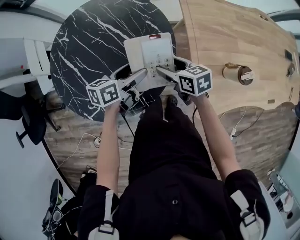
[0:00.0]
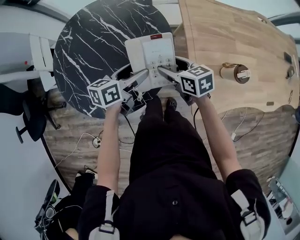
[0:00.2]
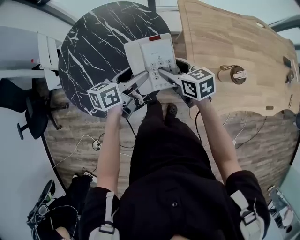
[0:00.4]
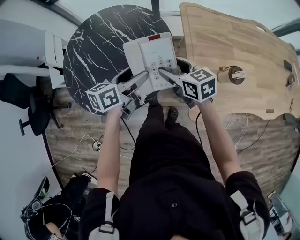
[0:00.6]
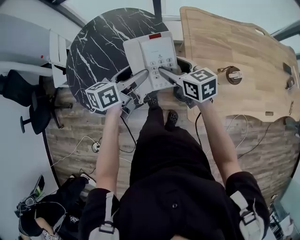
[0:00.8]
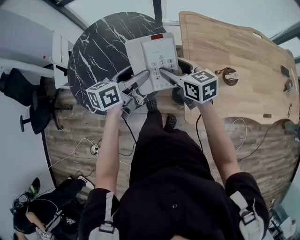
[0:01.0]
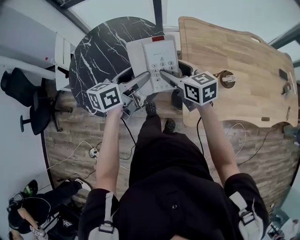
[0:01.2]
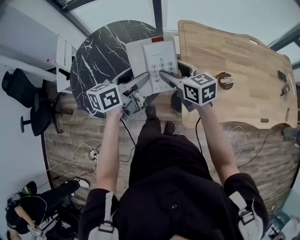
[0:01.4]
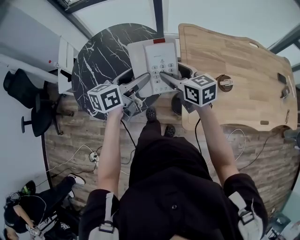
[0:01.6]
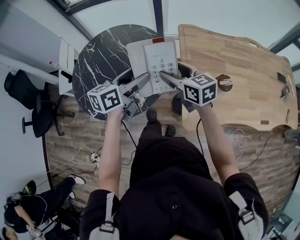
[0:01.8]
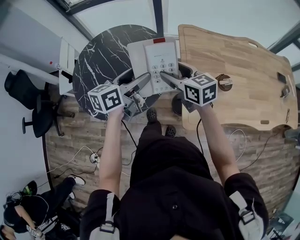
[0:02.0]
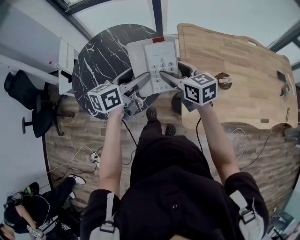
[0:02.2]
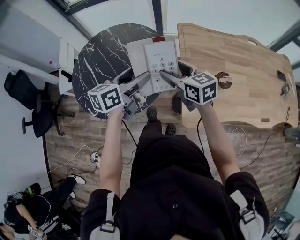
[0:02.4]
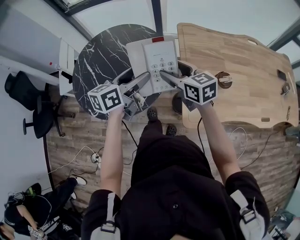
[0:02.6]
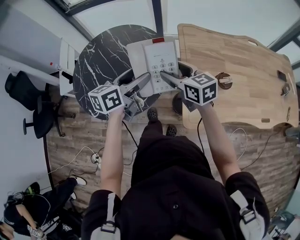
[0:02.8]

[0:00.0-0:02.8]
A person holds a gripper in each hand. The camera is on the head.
0:00.0 to 0:01.4: The left gripper shifts approximately 20 cm upward and backward, and swivels roughly 20 degrees. Meanwhile the right gripper goes about 15 cm upward, and rotates approximately 20 degrees.
0:01.4 to 0:02.8: The grippers stay close to where they were, moving slightly.

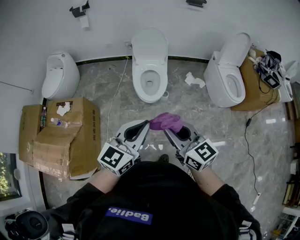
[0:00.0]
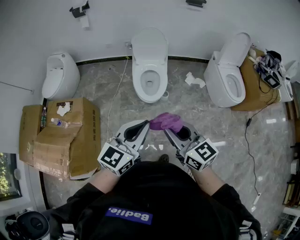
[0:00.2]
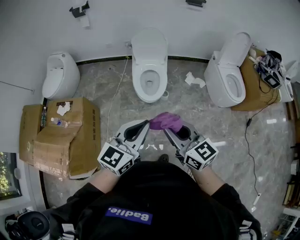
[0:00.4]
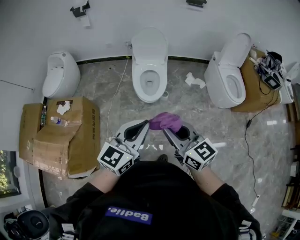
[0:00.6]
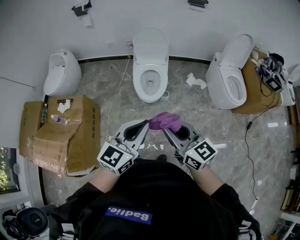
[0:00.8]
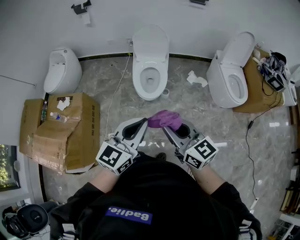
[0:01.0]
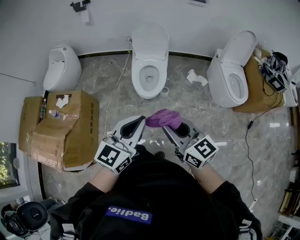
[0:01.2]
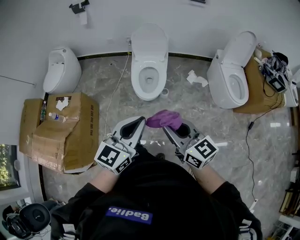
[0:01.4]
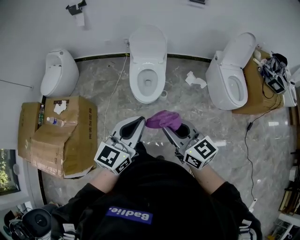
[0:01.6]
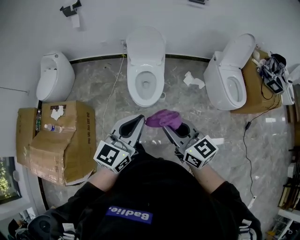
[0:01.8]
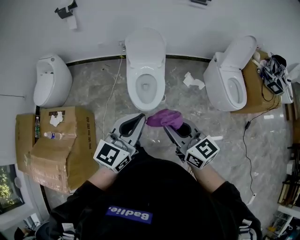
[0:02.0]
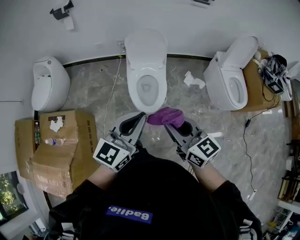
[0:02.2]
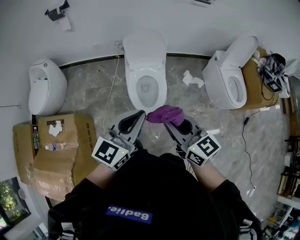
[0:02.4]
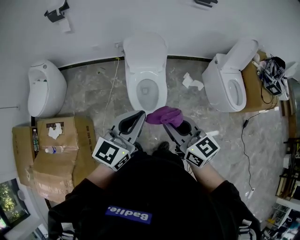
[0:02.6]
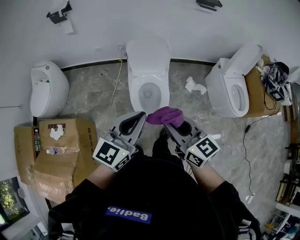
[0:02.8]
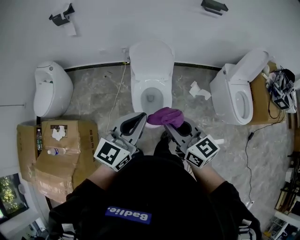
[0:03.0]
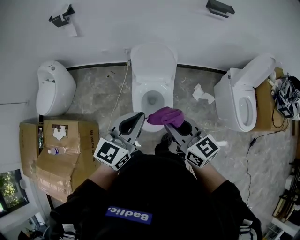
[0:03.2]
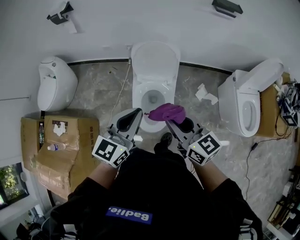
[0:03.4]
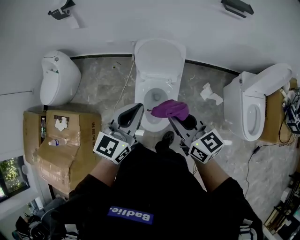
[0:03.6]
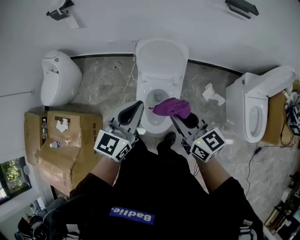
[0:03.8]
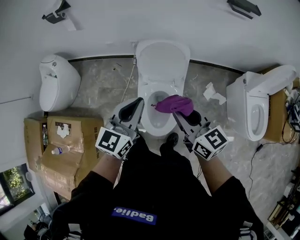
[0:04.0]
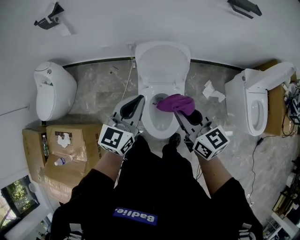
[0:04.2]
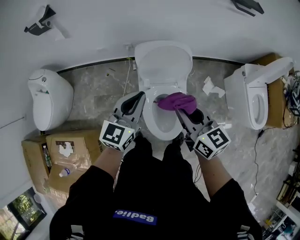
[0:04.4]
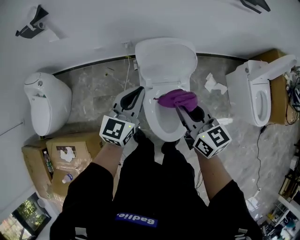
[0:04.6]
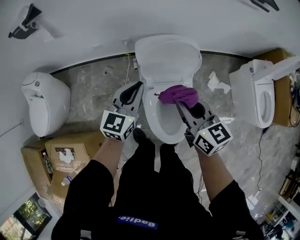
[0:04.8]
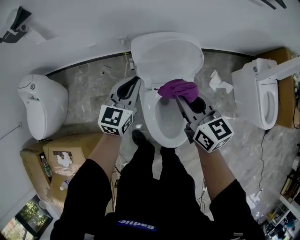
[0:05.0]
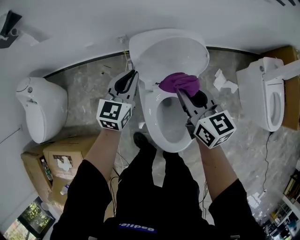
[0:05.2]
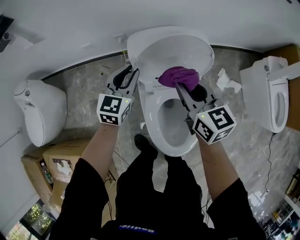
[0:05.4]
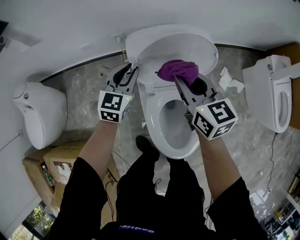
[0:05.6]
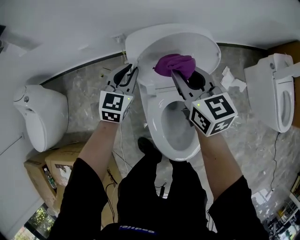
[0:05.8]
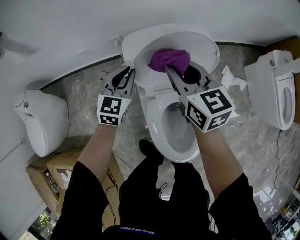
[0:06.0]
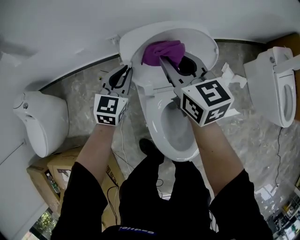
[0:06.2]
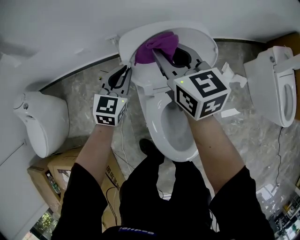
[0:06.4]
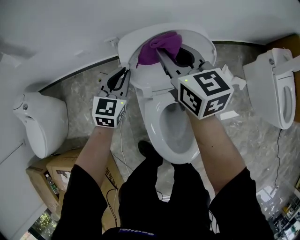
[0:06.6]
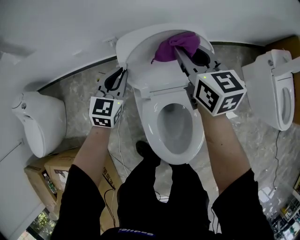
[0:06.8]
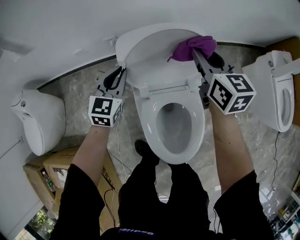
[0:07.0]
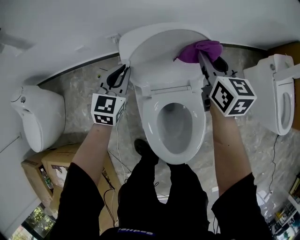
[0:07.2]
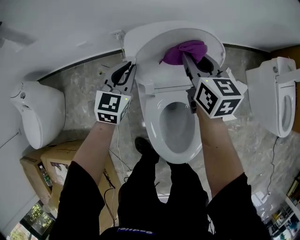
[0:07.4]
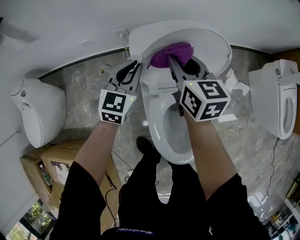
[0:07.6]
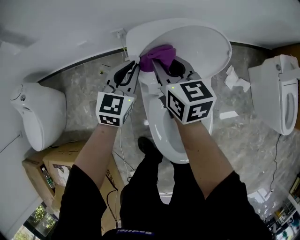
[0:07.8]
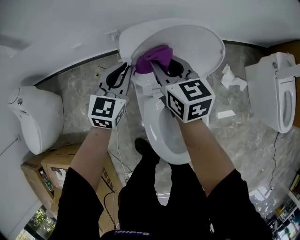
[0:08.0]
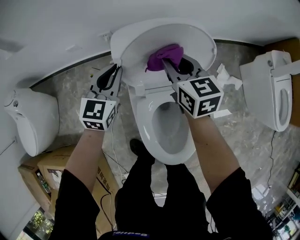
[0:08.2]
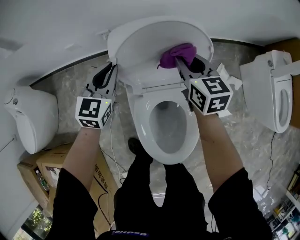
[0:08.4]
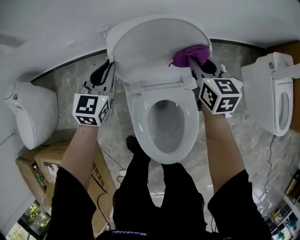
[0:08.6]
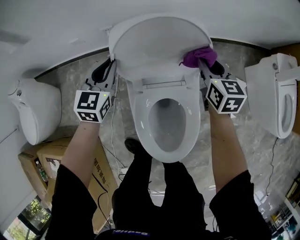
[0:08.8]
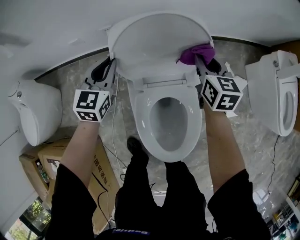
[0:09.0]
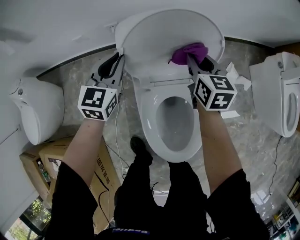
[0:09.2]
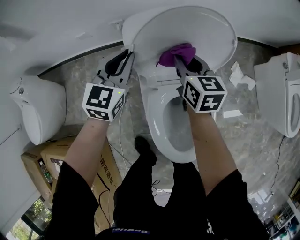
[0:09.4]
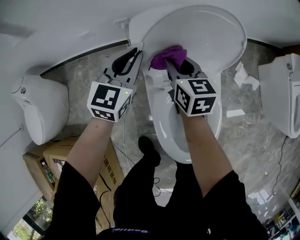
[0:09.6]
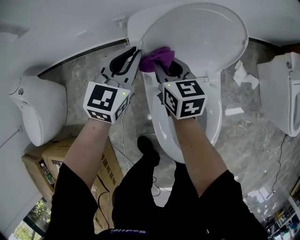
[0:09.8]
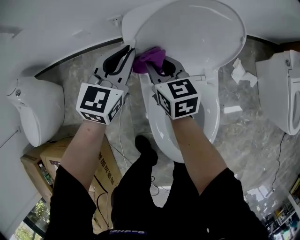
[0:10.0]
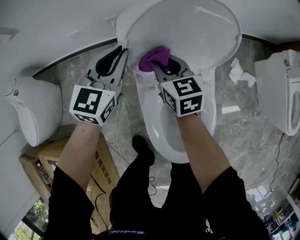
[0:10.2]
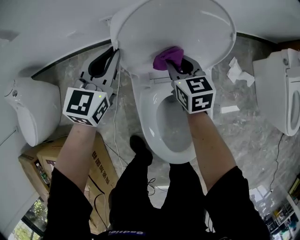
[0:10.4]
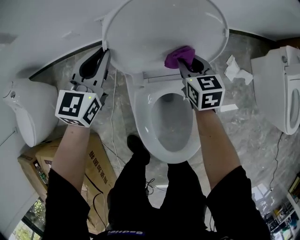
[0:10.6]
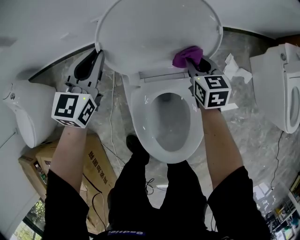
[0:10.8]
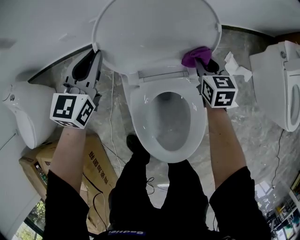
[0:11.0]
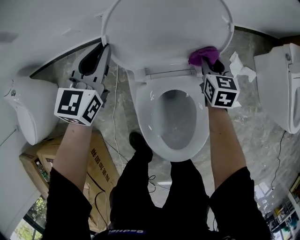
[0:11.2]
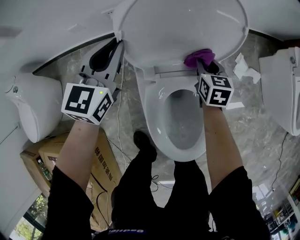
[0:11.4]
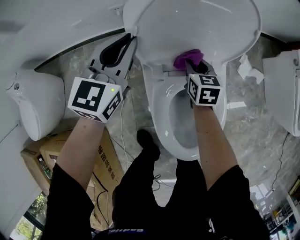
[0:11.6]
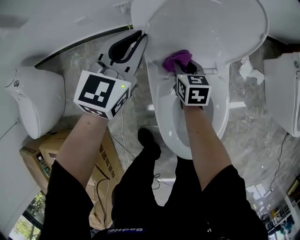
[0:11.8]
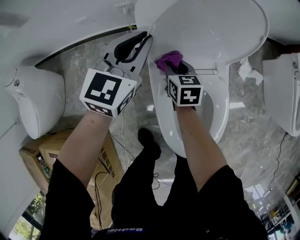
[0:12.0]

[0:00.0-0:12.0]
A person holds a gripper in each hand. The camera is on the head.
0:00.0 to 0:01.6: The right gripper shifts about 10 cm to the right and forward; the left gripper moves forward, approximately 5 cm.
0:01.6 to 0:03.0: Both grippers travel together forward, approximately 30 cm.
0:03.0 to 0:04.4: The right gripper moves forward, approximately 25 cm, while the left gripper travels forward and downward by about 30 cm.
0:04.4 to 0:06.0: The right gripper goes approximately 30 cm forward and downward. The left gripper heads downward and forward, covering some 35 cm, and swivels roughly 20 degrees.
0:06.0 to 0:07.6: The right gripper goes to the right and returns, approximately 10 cm each way.
0:07.6 to 0:09.0: The right gripper moves to the right and downward, roughly 20 cm.
0:09.0 to 0:10.4: The right gripper goes roughly 15 cm to the left and downward.
0:10.4 to 0:12.0: The right gripper travels to the left and downward by roughly 10 cm.

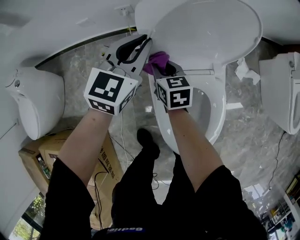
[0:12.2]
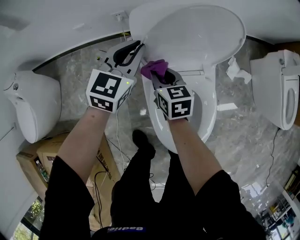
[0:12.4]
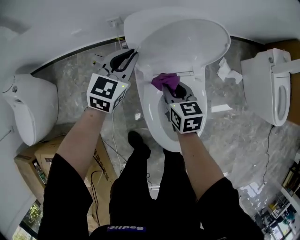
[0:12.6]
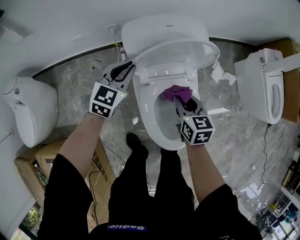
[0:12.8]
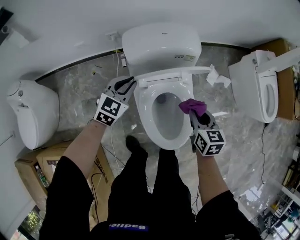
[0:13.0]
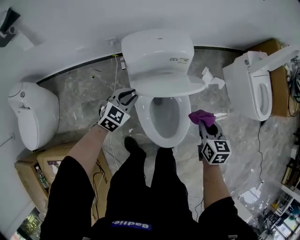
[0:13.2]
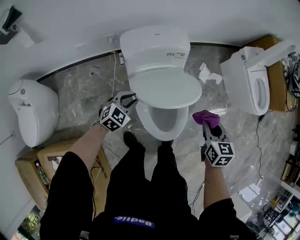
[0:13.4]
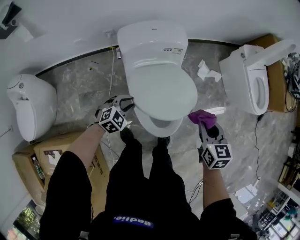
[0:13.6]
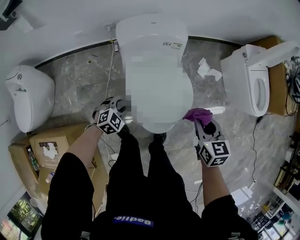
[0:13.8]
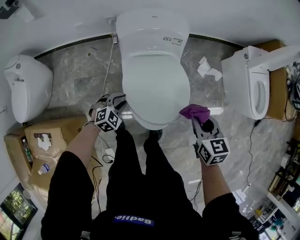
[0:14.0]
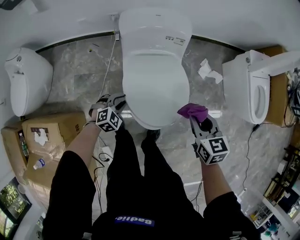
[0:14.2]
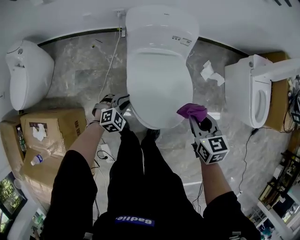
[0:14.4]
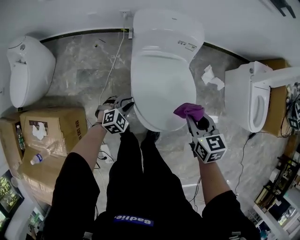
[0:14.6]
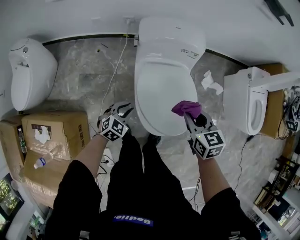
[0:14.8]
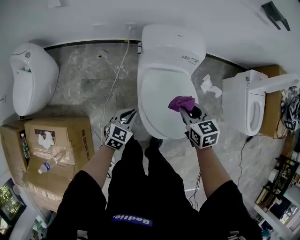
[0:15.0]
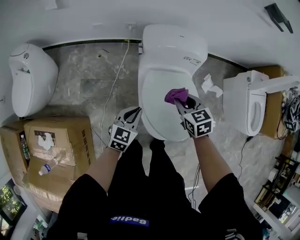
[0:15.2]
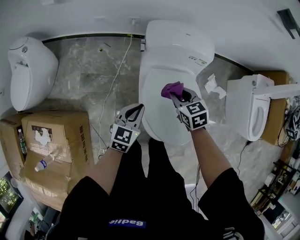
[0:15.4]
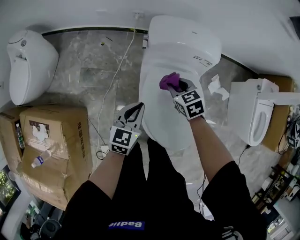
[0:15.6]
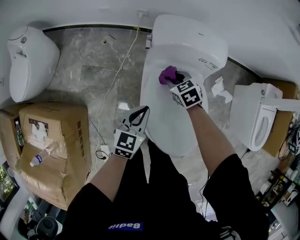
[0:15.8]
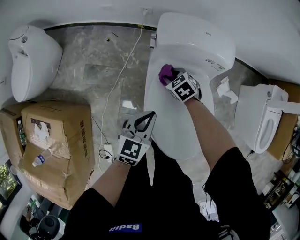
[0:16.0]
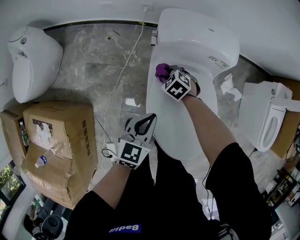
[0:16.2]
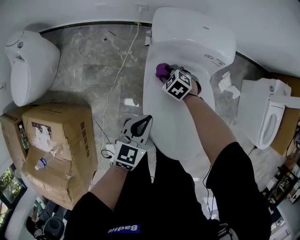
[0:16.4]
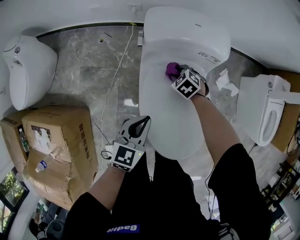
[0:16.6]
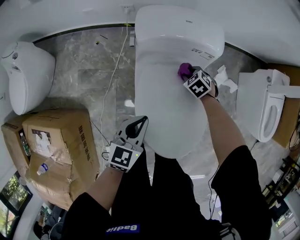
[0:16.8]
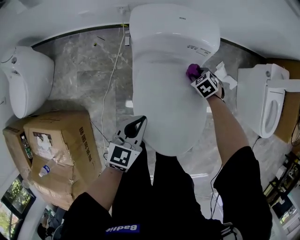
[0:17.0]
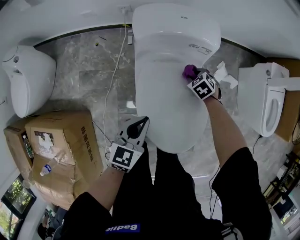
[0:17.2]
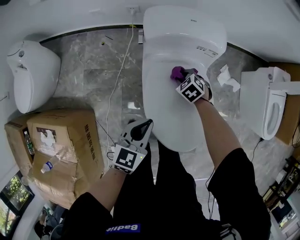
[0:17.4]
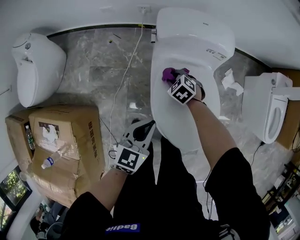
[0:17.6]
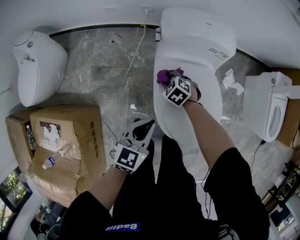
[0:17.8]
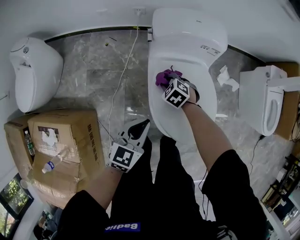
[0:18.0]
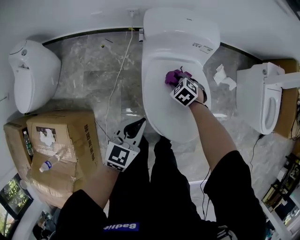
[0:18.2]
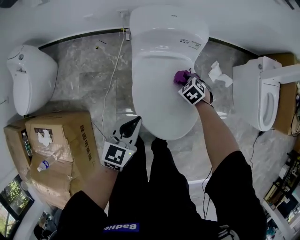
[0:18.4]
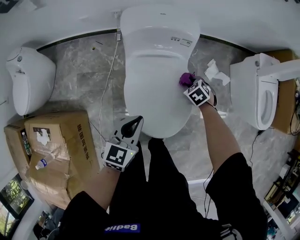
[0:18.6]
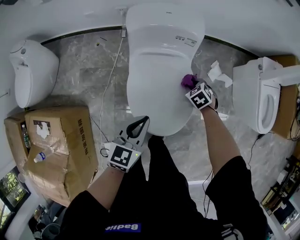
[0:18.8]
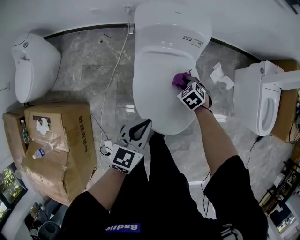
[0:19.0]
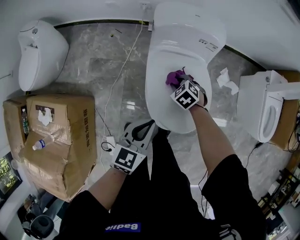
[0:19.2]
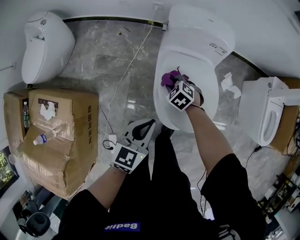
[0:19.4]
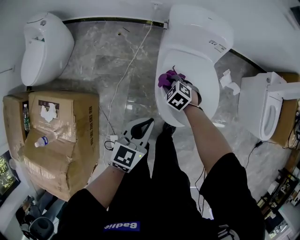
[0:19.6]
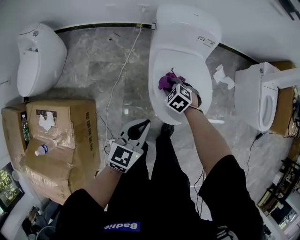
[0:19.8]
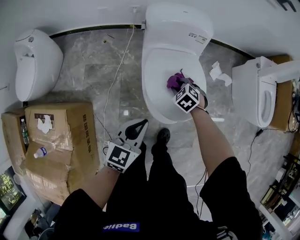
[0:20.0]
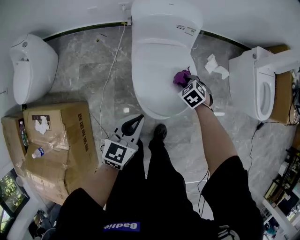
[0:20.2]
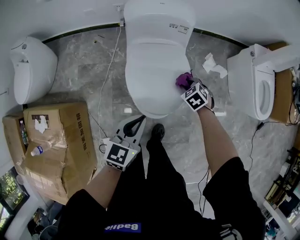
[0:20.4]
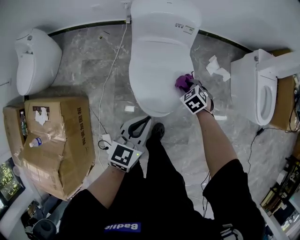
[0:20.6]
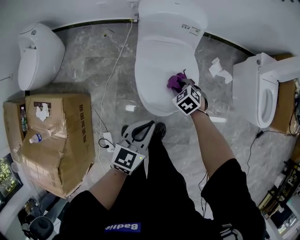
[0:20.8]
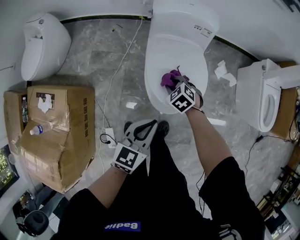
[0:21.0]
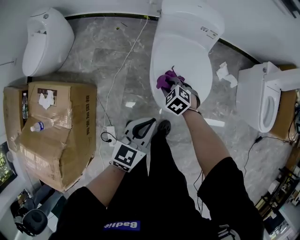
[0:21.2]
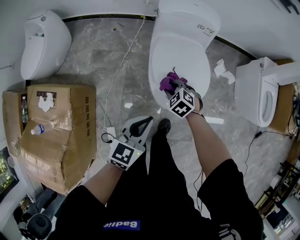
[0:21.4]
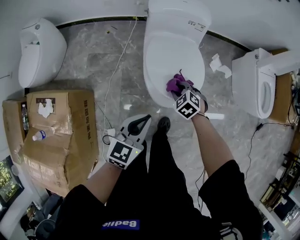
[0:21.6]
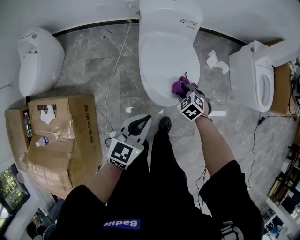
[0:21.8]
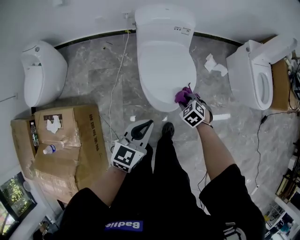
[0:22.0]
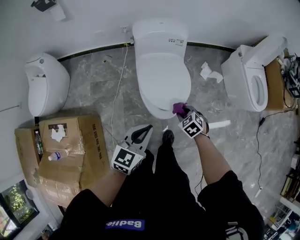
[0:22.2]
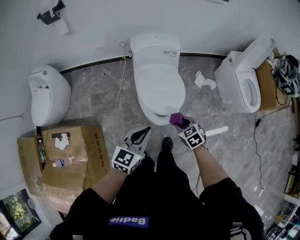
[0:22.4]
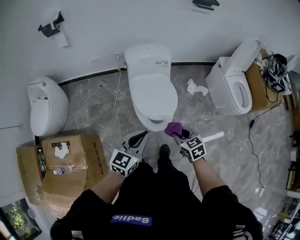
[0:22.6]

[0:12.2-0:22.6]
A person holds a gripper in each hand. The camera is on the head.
0:12.2 to 0:13.6: The right gripper moves approximately 50 cm, and rotates about 20 degrees, while the left gripper ends up some 25 cm from where it was, and changes its angle by some 40 degrees.
0:13.6 to 0:15.2: The right gripper moves about 20 cm, and swivels some 30 degrees, while the left gripper is displaced upward by approximately 5 cm, and turns by approximately 50 degrees.
0:15.2 to 0:16.6: The left gripper moves roughly 5 cm. Meanwhile the right gripper shifts roughly 25 cm downward and forward, and rotates about 40 degrees.
0:16.6 to 0:18.2: The right gripper goes left and right, some 25 cm each way, reversing 2 times; the left gripper travels backward by roughly 5 cm.
0:18.2 to 0:19.6: The left gripper goes some 10 cm backward, and travels to the right and back again, about 10 cm each way. The right gripper goes roughly 15 cm to the left and backward.
0:19.6 to 0:21.2: The left gripper heads backward and to the right, covering some 10 cm. Meanwhile the right gripper shifts about 10 cm backward, and reaches roughly 25 cm to the right, then returns.
0:21.2 to 0:22.6: The left gripper travels upward by roughly 15 cm. The right gripper goes about 30 cm upward, backward and to the right, and rolls clockwise, seen from behind, by about 40 degrees.
